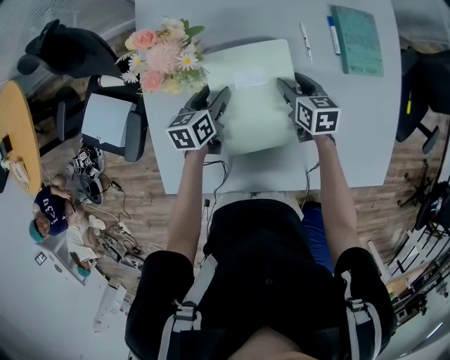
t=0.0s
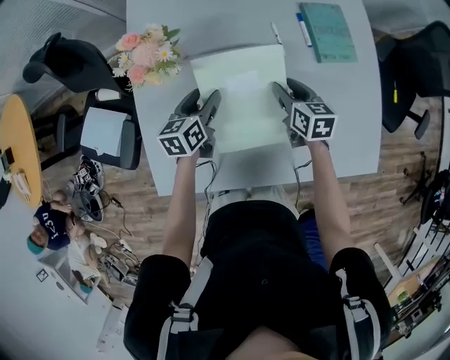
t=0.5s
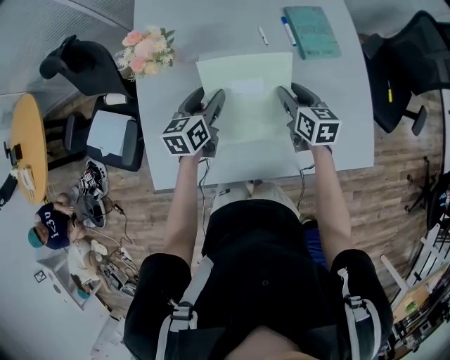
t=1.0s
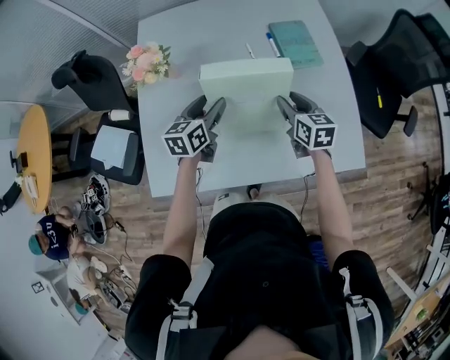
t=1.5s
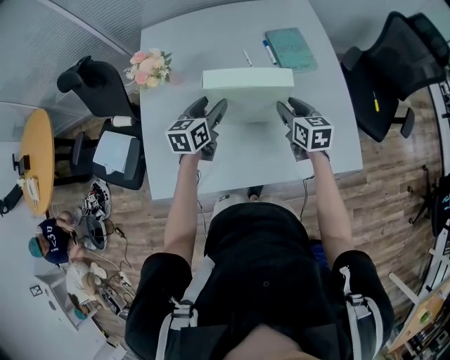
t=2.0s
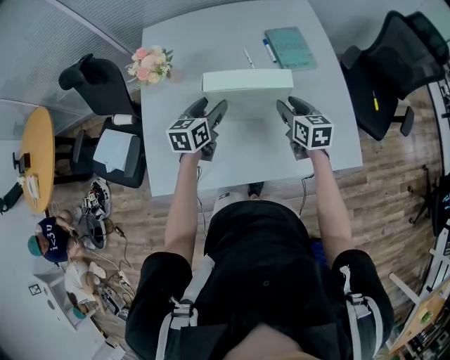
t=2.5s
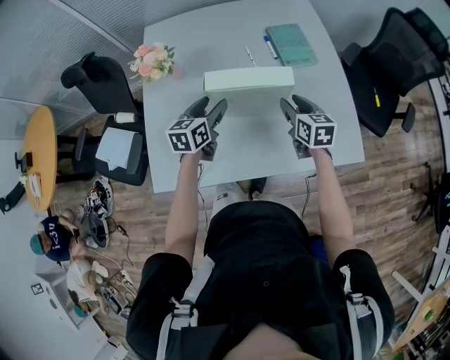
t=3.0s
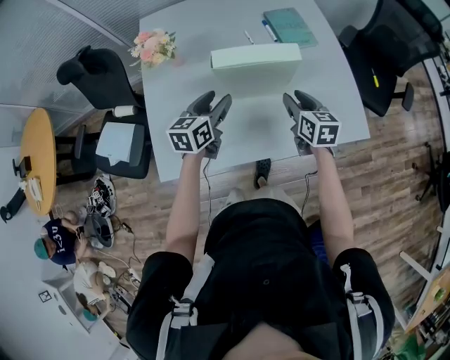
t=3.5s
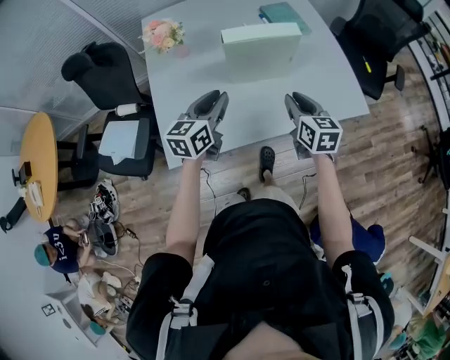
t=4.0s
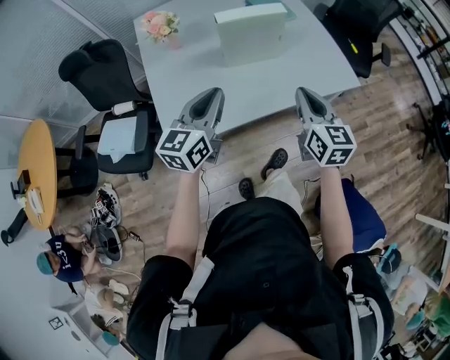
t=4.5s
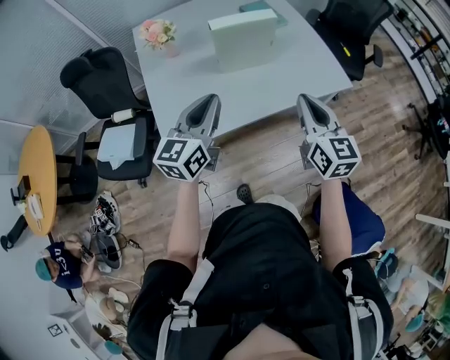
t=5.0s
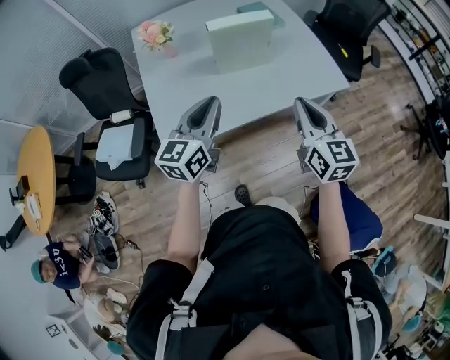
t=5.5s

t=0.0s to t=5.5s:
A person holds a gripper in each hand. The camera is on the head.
t=0.0s to t=2.0s: The left gripper shifts approximately 30 cm upward, to the right and backward, and changes its angle by about 30 degrees, while the right gripper travels backward, to the right and upward by some 30 cm.
t=2.0s to t=3.5s: The grippers both shift backward by some 10 cm.
t=3.5s to t=5.5s: The grippers both shift backward and upward by approximately 35 cm. The left gripper changes its angle by about 20 degrees, and closes its fingers. The right gripper rotates approximately 20 degrees, and closes its fingers.

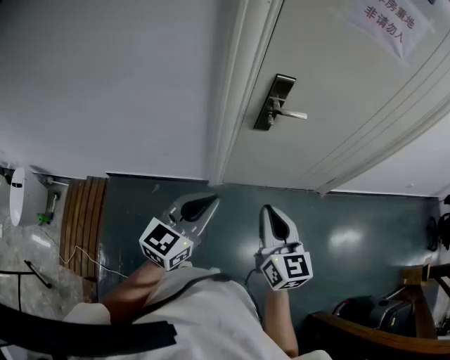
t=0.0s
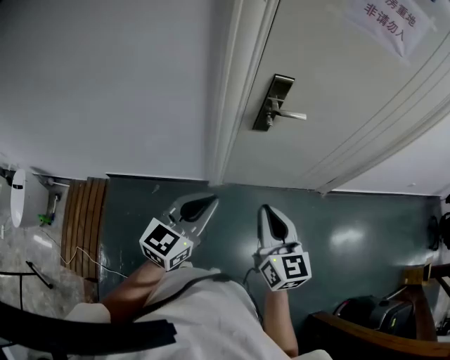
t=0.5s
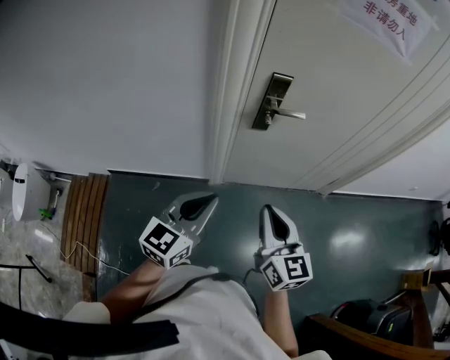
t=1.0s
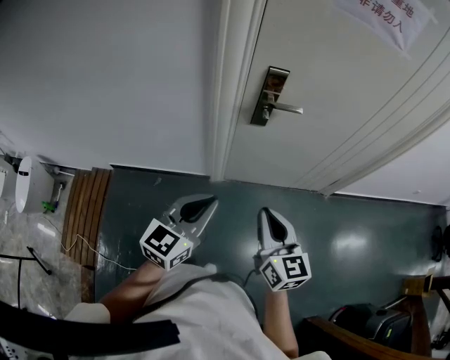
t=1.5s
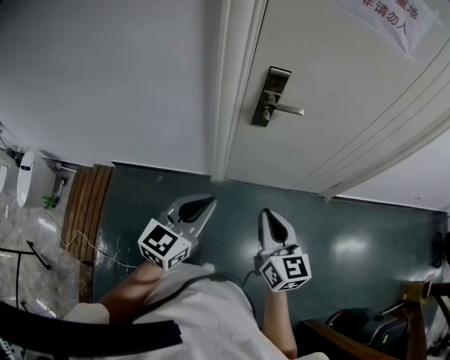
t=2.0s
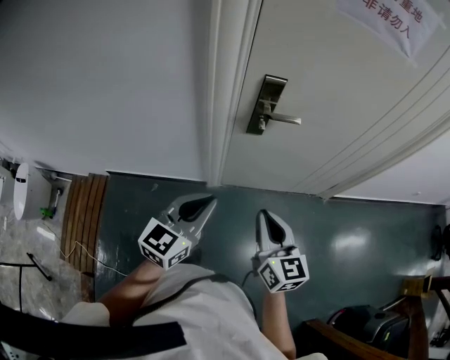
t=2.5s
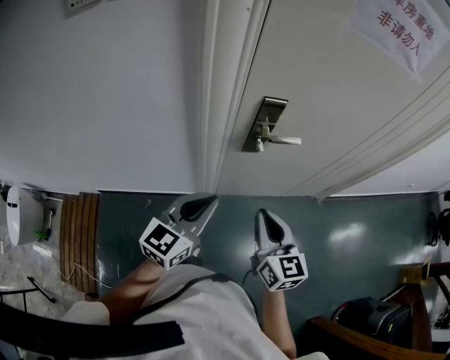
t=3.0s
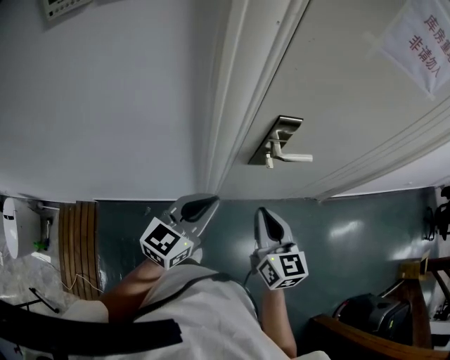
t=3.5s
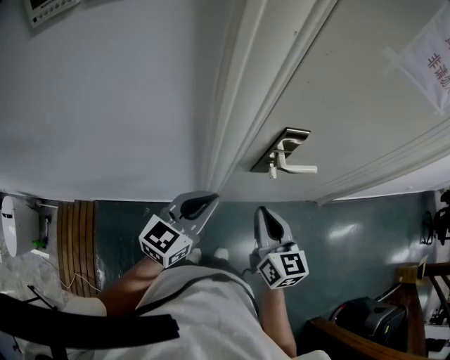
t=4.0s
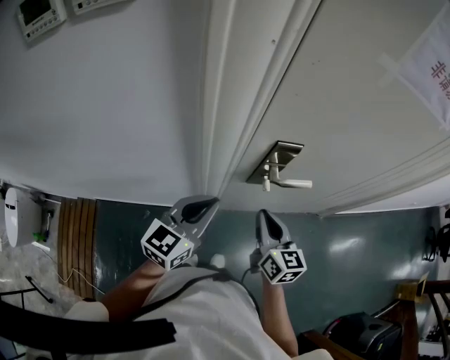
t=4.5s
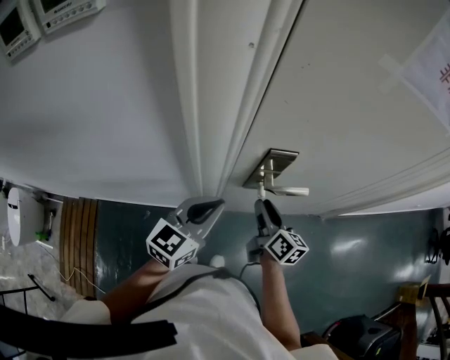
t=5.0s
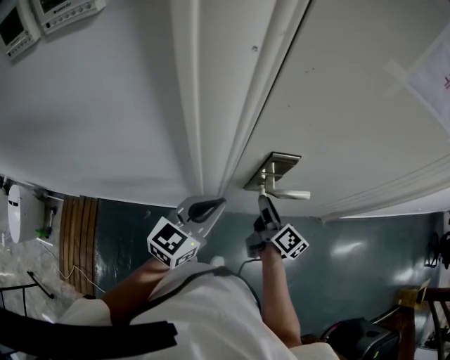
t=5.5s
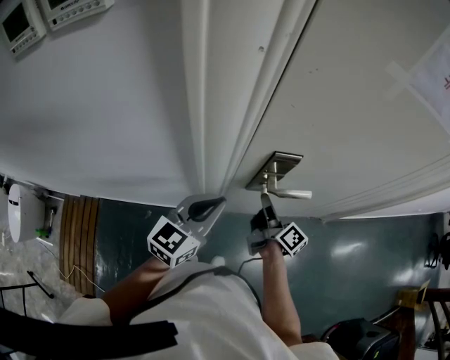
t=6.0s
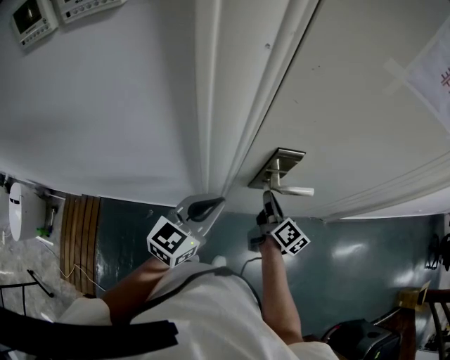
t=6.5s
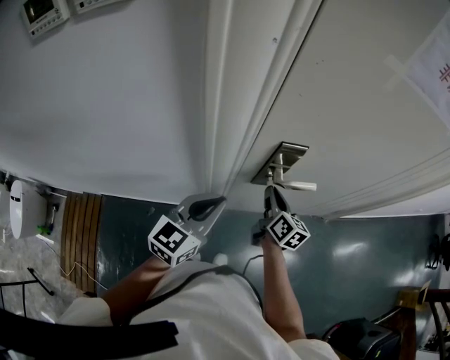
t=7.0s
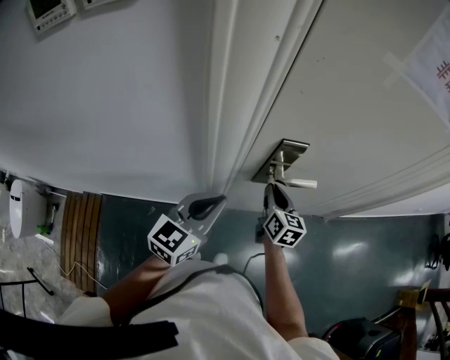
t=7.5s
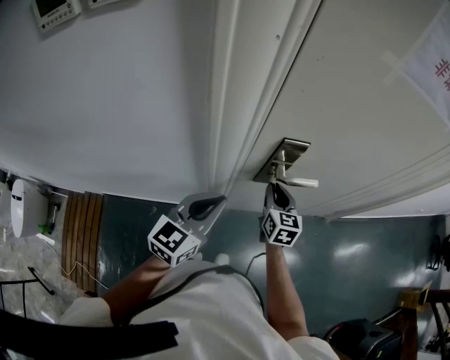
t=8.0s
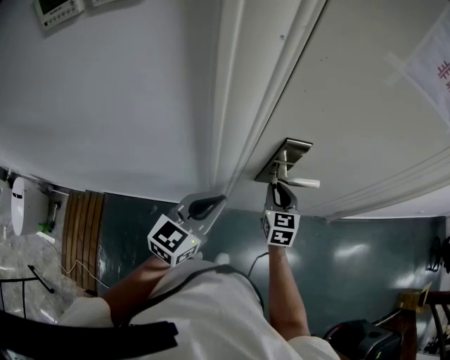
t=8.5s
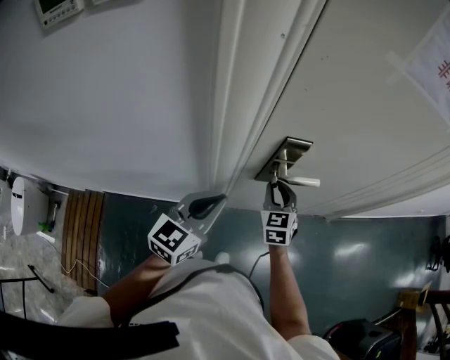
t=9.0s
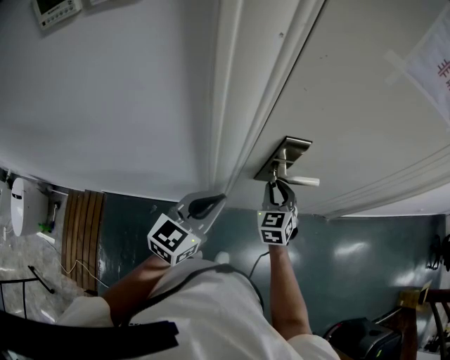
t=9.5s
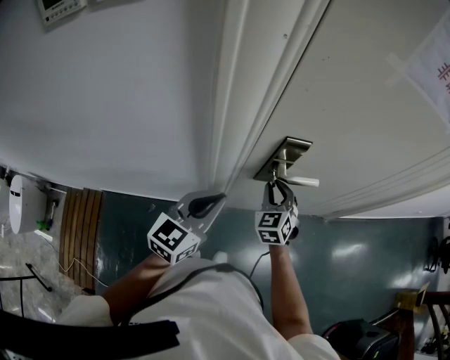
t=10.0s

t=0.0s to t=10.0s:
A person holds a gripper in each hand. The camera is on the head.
t=0.0s to t=2.0s: The two grippers go about 5 cm to the right.
t=2.0s to t=4.0s: The two grippers go approximately 30 cm forward and to the left.
t=4.0s to t=6.0s: The left gripper travels forward by about 5 cm. The right gripper travels forward and downward by some 20 cm, and rolls clockwise, seen from behind, by approximately 50 degrees.
t=6.0s to t=8.0s: The right gripper twists approximately 60 degrees counterclockwise, seen from behind.
t=8.0s to t=10.0s: The right gripper rotates about 40 degrees.

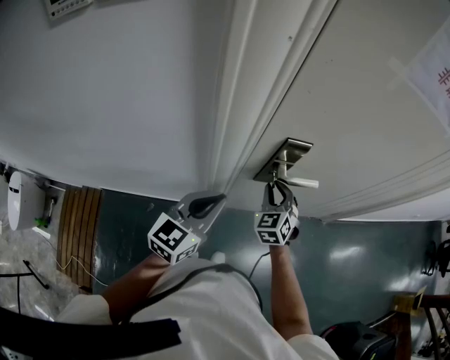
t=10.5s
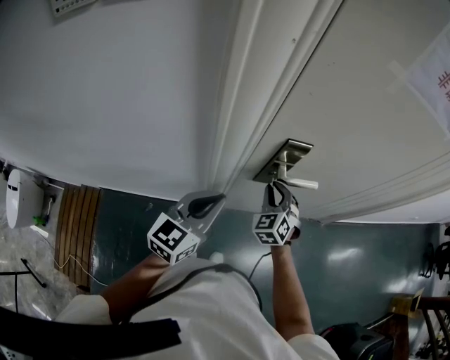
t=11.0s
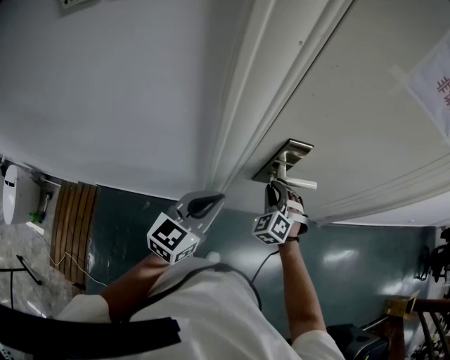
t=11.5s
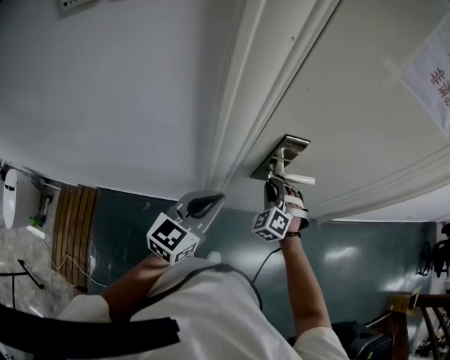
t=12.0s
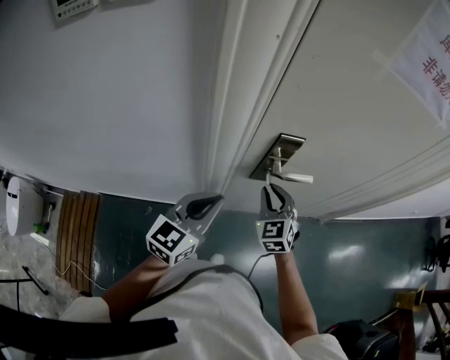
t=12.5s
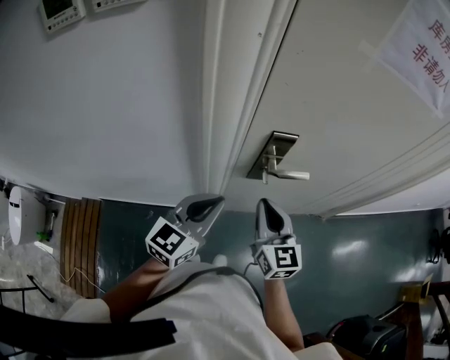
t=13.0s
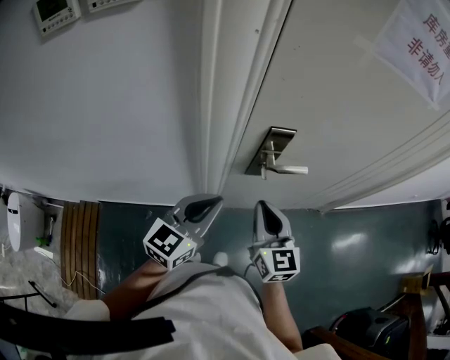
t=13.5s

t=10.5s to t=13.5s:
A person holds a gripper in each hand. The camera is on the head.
t=10.5s to t=12.0s: The right gripper turns by some 30 degrees.
t=12.0s to t=13.5s: The right gripper shifts approximately 15 cm backward and upward, and rolls clockwise, seen from behind, by about 70 degrees.

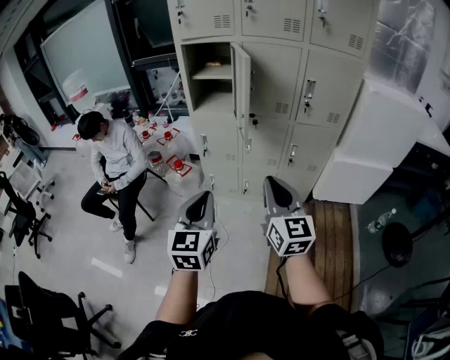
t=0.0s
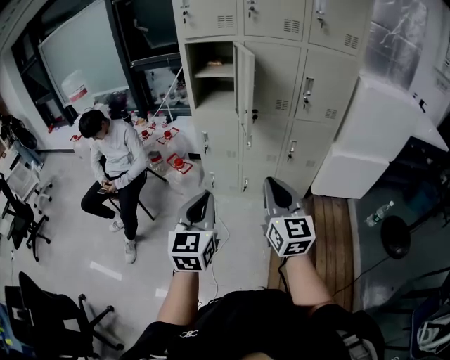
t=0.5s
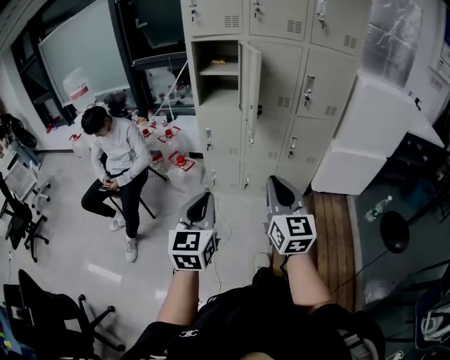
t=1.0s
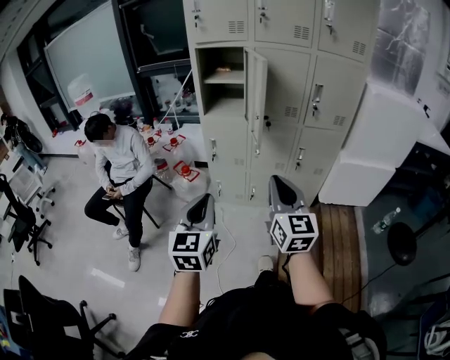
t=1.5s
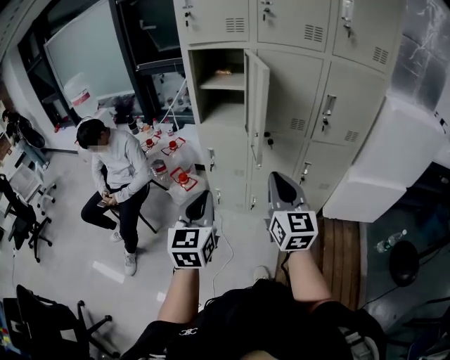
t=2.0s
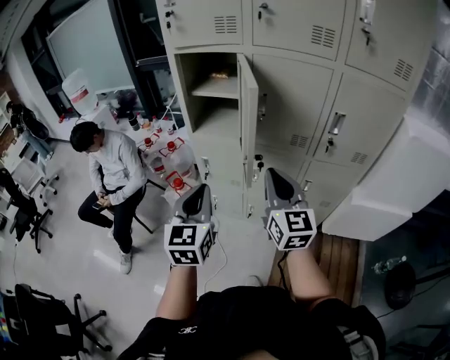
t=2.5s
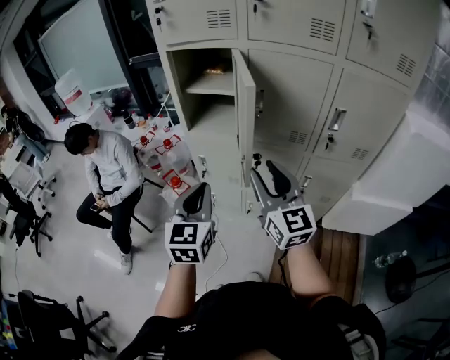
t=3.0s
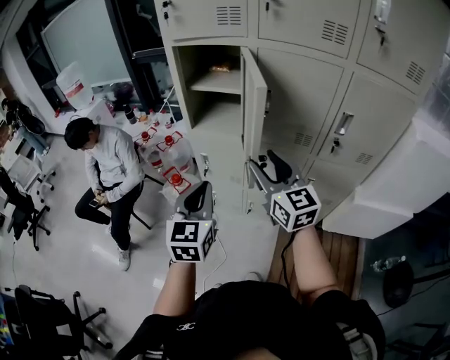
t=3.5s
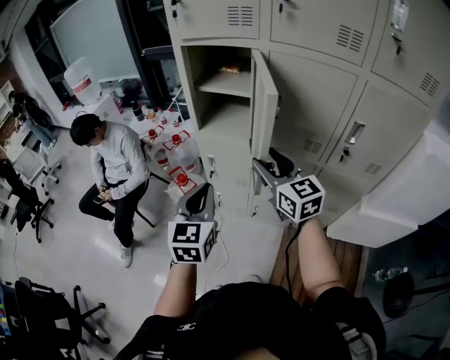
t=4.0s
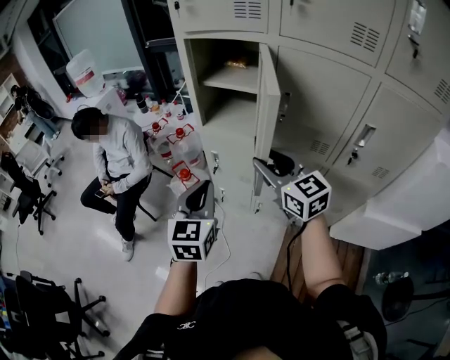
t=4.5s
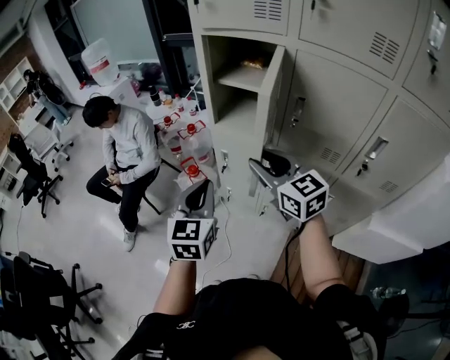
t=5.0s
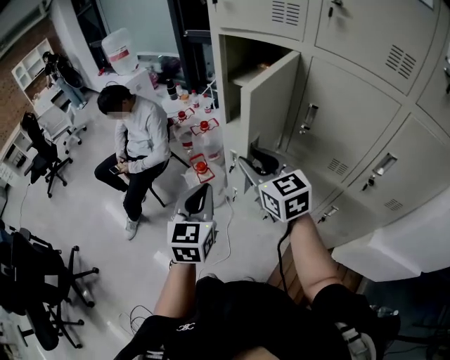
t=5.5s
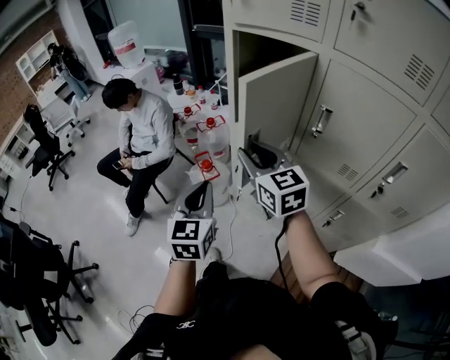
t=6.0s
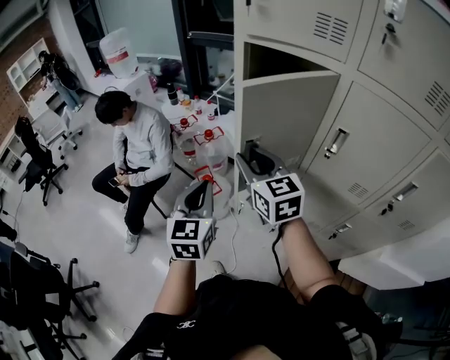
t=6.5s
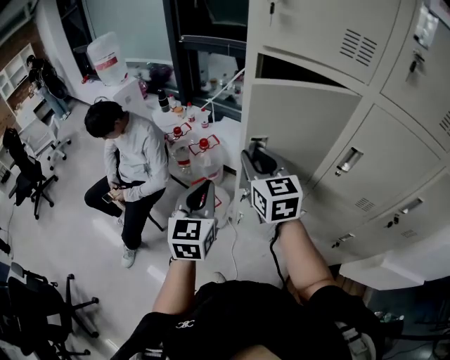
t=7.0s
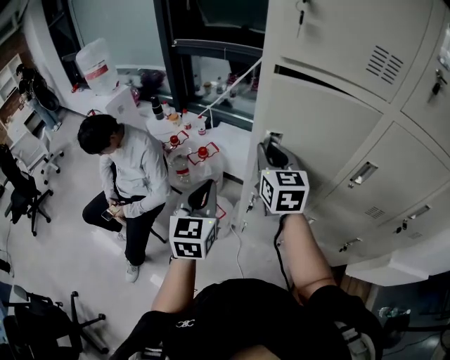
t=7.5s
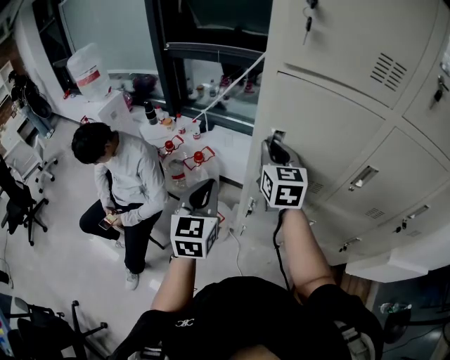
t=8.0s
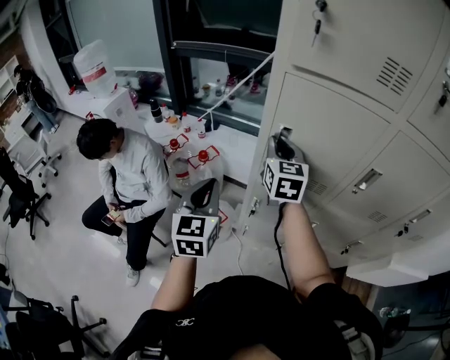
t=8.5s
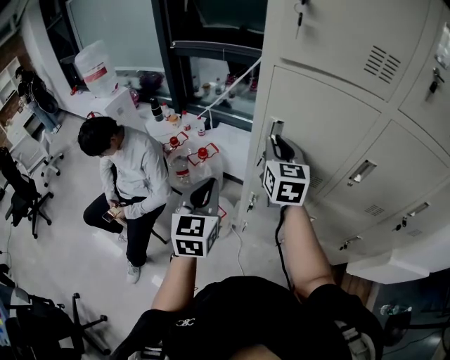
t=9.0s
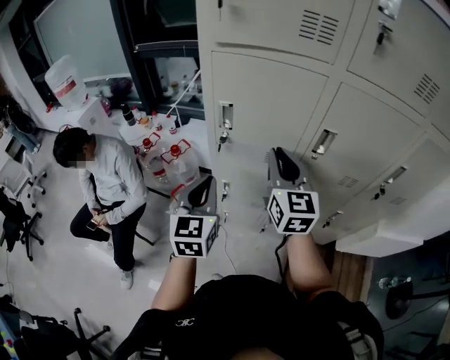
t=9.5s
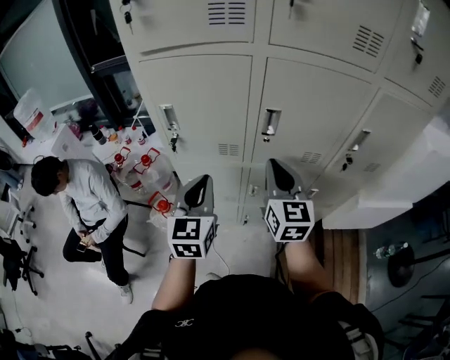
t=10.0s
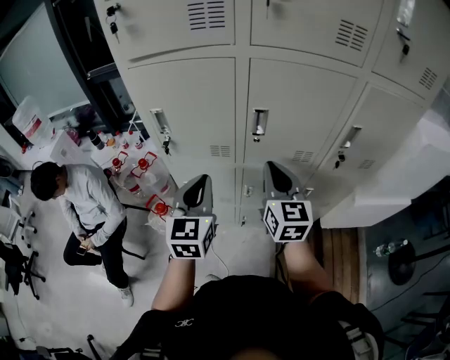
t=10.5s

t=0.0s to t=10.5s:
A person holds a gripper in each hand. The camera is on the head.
t=0.0s to t=2.0s: The grippers both shift forward by approximately 15 cm.
t=2.0s to t=4.0s: The two grippers go about 20 cm forward. The right gripper swivels approximately 30 degrees, and opens.
t=4.0s to t=6.5s: Both grippers travel together forward and to the left, roughly 20 cm.
t=6.5s to t=8.5s: The right gripper heads forward, covering roughly 20 cm, and swivels about 30 degrees. Meanwhile the left gripper goes about 20 cm forward and to the left.
t=8.5s to t=10.5s: The right gripper moves to the right and backward, about 35 cm. Meanwhile the left gripper travels to the right by about 25 cm.
